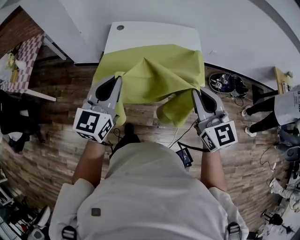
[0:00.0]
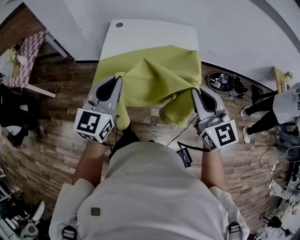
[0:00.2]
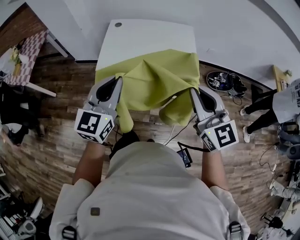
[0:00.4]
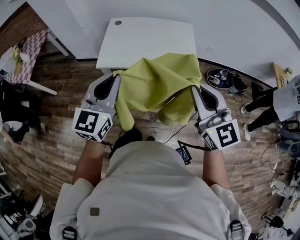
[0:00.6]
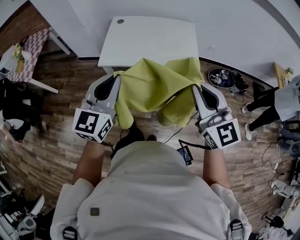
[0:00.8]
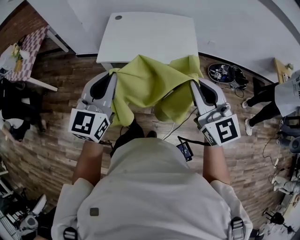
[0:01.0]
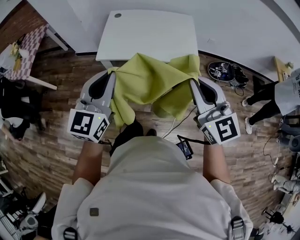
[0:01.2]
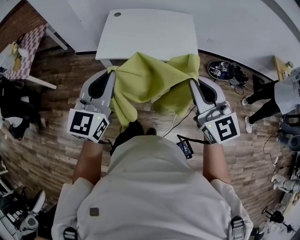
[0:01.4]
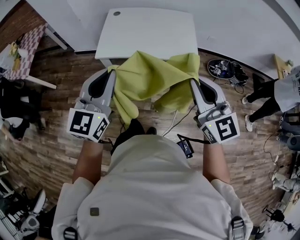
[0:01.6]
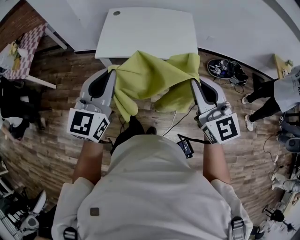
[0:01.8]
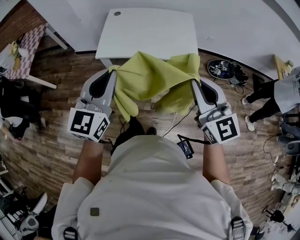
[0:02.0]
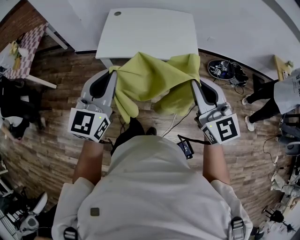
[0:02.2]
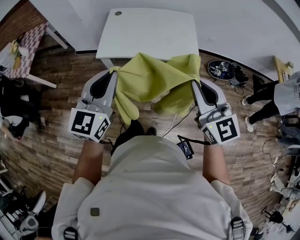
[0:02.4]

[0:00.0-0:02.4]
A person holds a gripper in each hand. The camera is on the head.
0:00.0 to 0:01.2: Both grippers move backward, some 15 cm.
0:01.2 to 0:02.4: The grippers stay close to where they were, moving slightly.

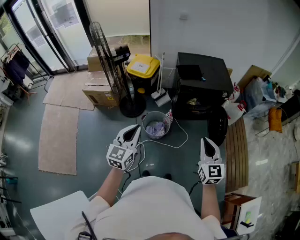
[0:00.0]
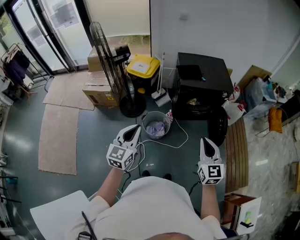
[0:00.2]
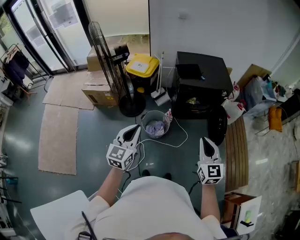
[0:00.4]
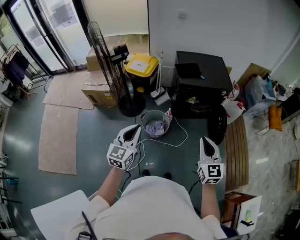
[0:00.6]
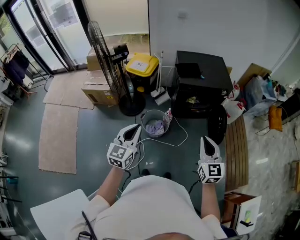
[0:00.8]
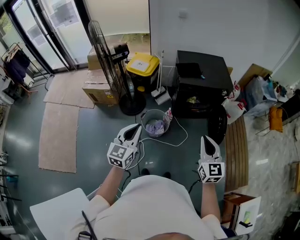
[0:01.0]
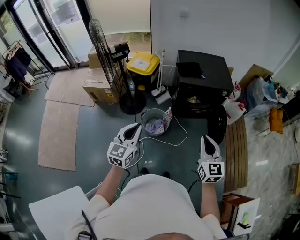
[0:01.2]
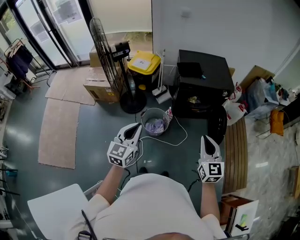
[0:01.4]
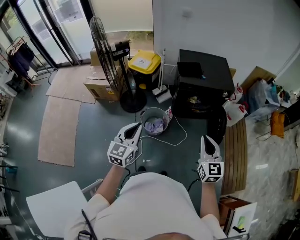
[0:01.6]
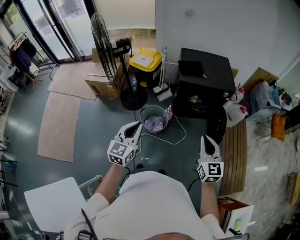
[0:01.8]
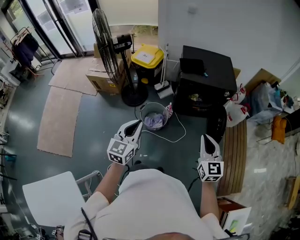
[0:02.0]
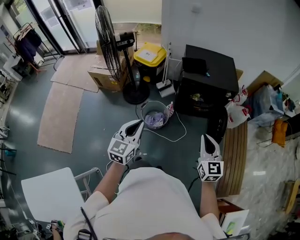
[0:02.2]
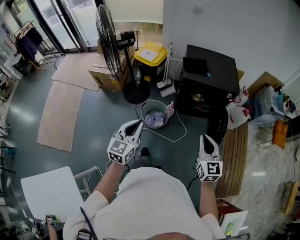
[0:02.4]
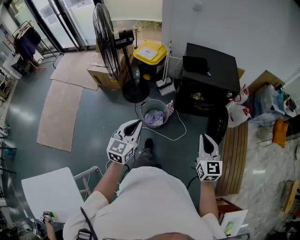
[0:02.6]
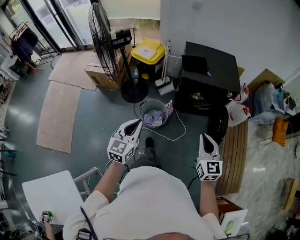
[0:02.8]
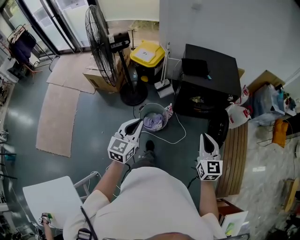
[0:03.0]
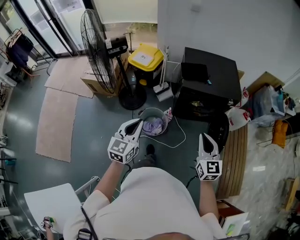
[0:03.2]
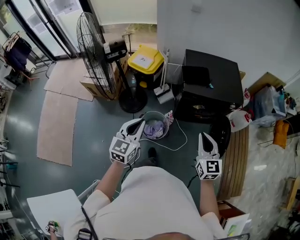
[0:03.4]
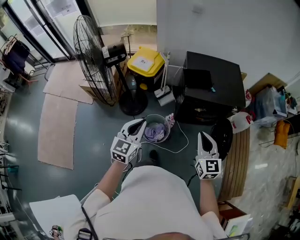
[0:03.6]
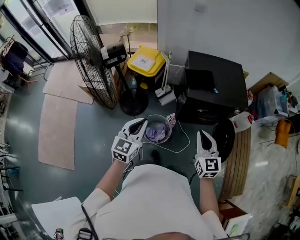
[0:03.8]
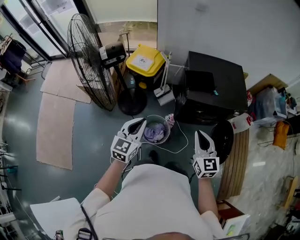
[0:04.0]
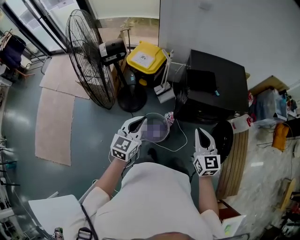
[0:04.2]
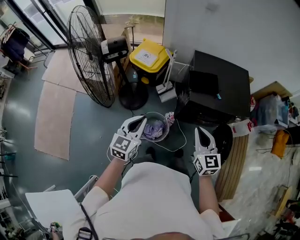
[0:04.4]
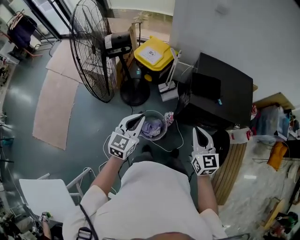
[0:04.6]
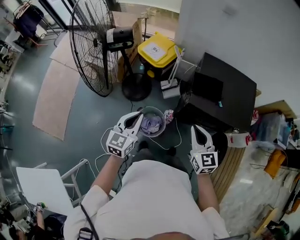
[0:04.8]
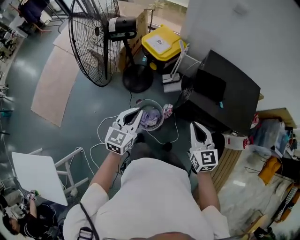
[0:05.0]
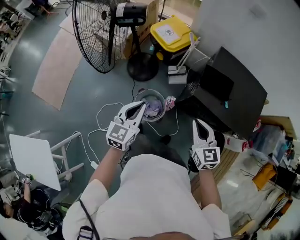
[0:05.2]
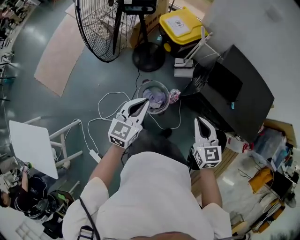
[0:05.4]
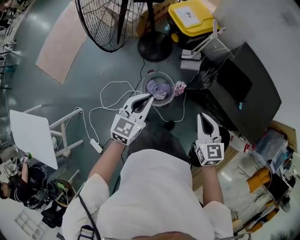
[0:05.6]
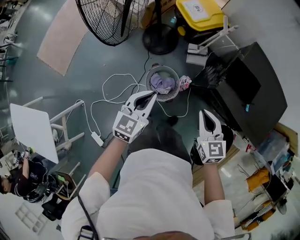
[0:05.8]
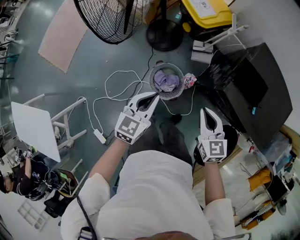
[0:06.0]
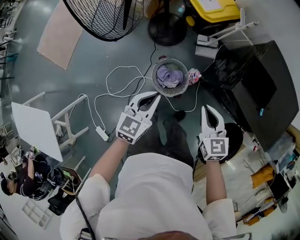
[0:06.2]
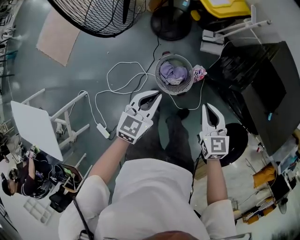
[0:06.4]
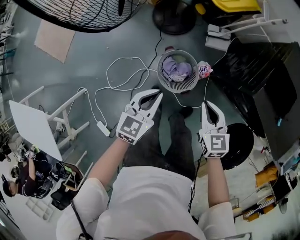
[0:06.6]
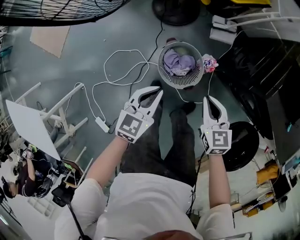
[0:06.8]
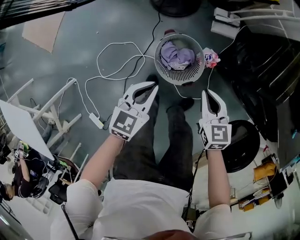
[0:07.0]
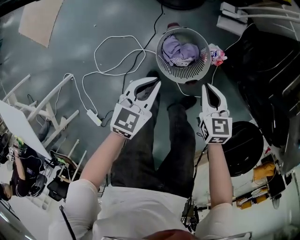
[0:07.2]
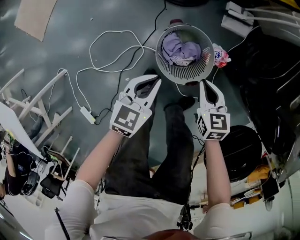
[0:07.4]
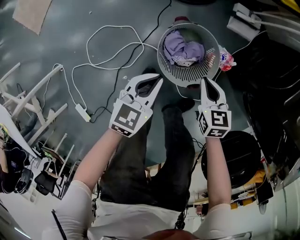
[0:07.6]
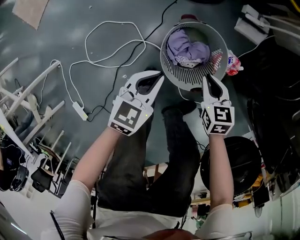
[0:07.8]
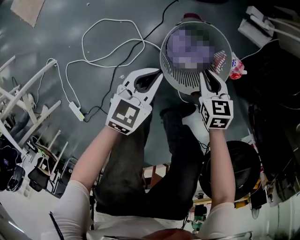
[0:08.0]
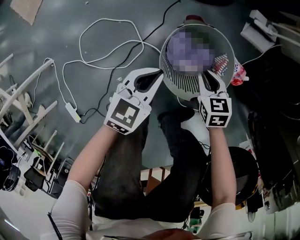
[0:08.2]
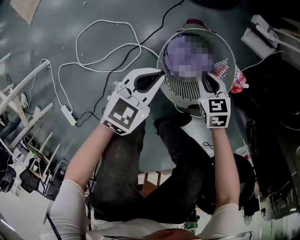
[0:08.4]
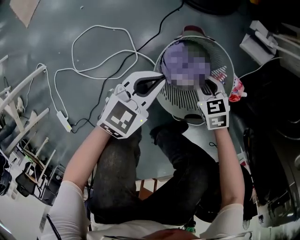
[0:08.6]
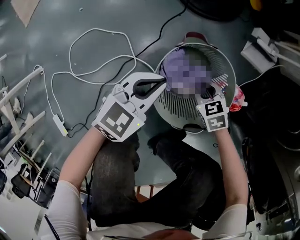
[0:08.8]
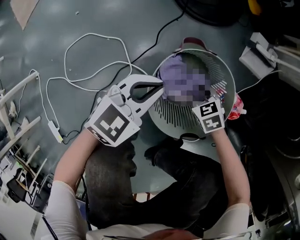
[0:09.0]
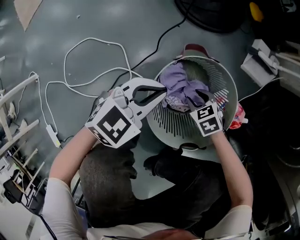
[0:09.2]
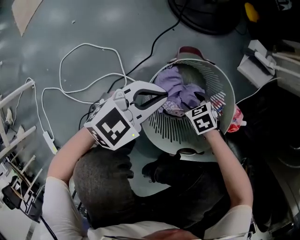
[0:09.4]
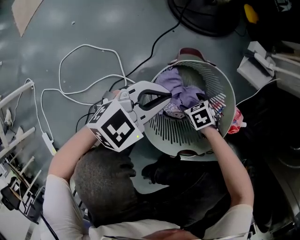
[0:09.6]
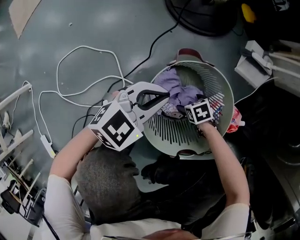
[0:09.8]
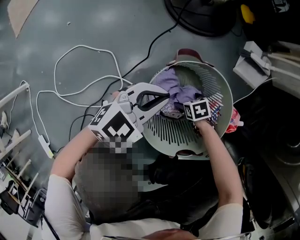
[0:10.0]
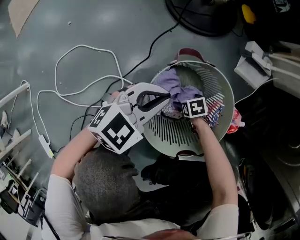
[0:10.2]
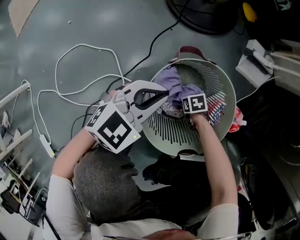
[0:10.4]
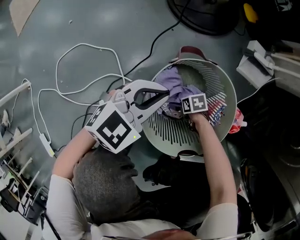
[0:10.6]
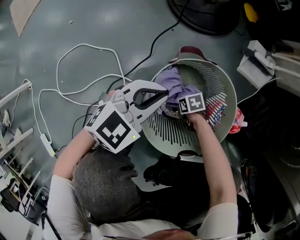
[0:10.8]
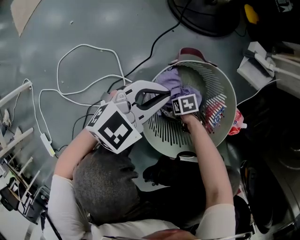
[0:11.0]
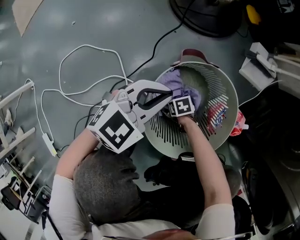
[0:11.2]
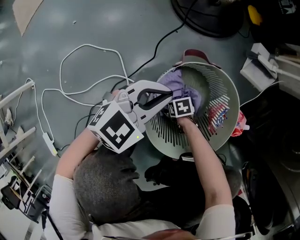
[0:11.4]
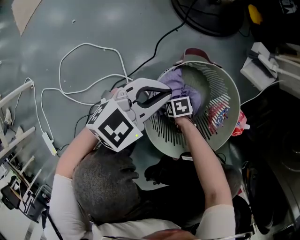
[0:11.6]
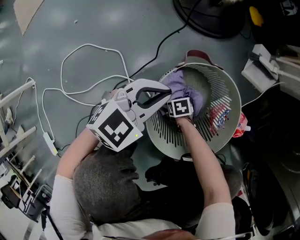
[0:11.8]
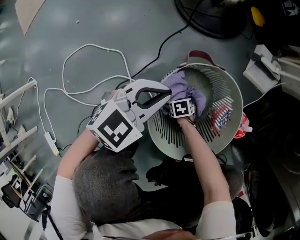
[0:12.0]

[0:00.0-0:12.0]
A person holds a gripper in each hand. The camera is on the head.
0:00.0 to 0:01.6: Both grippers move to the right, some 5 cm.
0:01.6 to 0:03.0: Both grippers travel together forward, roughly 10 cm.
0:03.0 to 0:04.4: Both grippers move forward, some 25 cm.
0:04.4 to 0:06.0: The two grippers go about 15 cm downward. The left gripper turns by about 30 degrees. Meanwhile the right gripper changes its angle by about 40 degrees.
0:06.0 to 0:07.6: The two grippers go roughly 50 cm downward.
0:07.6 to 0:09.0: The right gripper goes some 30 cm downward, and turns by about 40 degrees. The left gripper travels downward by some 20 cm.
0:09.0 to 0:10.4: The right gripper moves downward, some 20 cm, swivels roughly 30 degrees, and opens its fingers.
0:10.4 to 0:12.0: The right gripper moves roughly 10 cm.

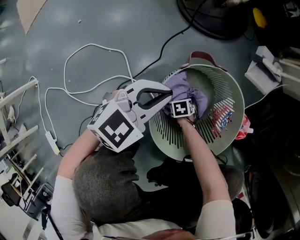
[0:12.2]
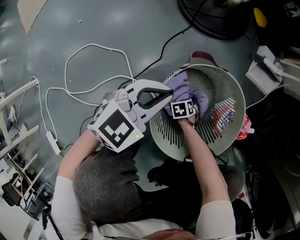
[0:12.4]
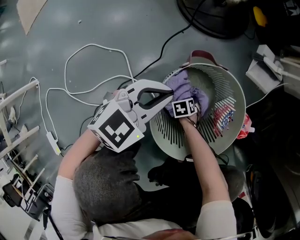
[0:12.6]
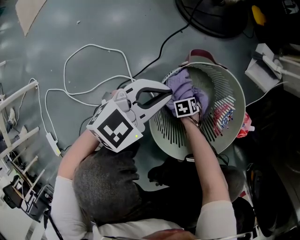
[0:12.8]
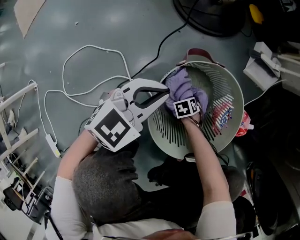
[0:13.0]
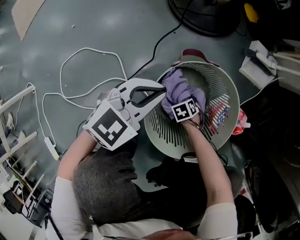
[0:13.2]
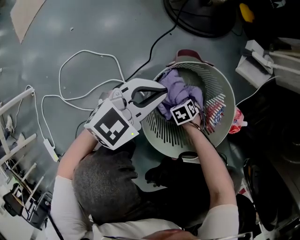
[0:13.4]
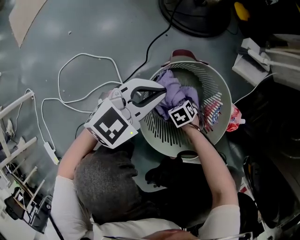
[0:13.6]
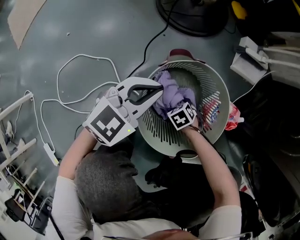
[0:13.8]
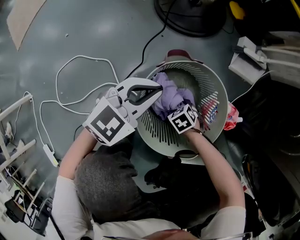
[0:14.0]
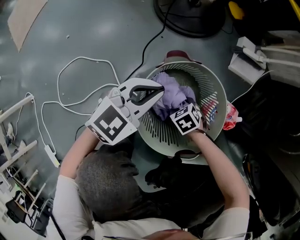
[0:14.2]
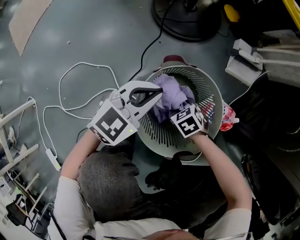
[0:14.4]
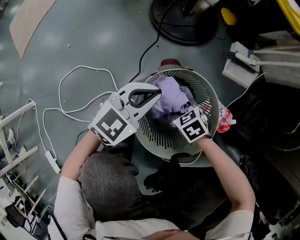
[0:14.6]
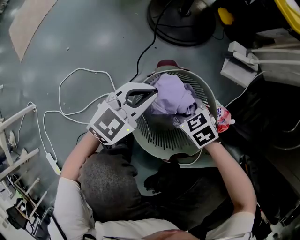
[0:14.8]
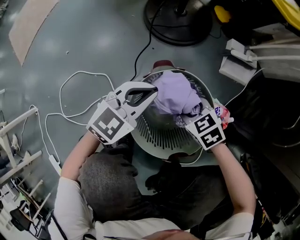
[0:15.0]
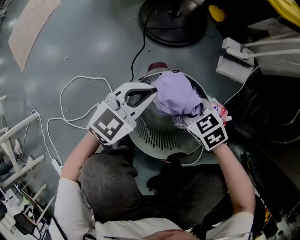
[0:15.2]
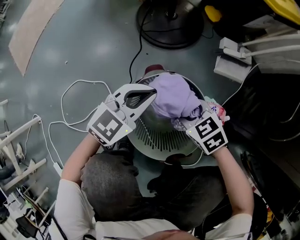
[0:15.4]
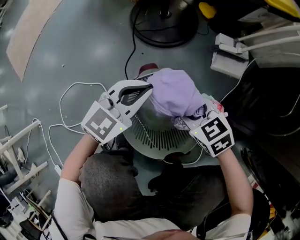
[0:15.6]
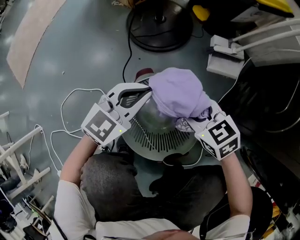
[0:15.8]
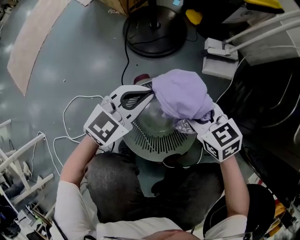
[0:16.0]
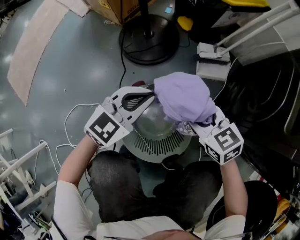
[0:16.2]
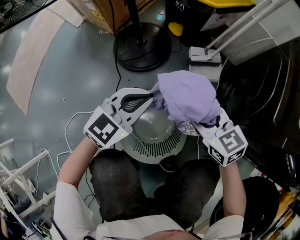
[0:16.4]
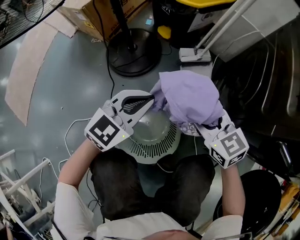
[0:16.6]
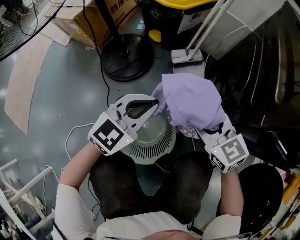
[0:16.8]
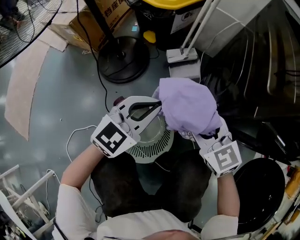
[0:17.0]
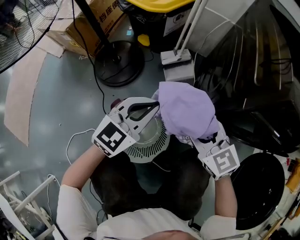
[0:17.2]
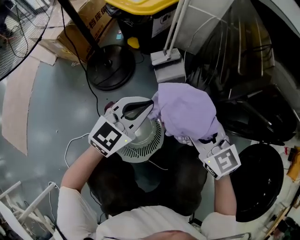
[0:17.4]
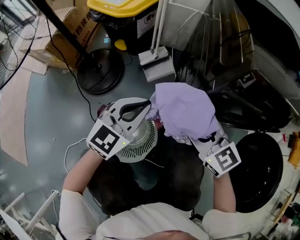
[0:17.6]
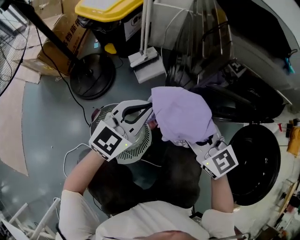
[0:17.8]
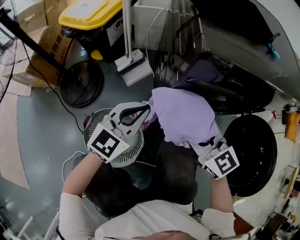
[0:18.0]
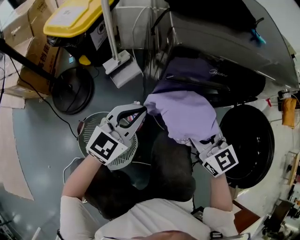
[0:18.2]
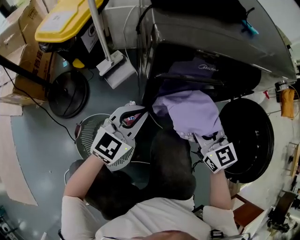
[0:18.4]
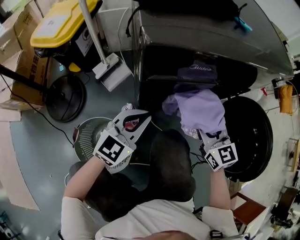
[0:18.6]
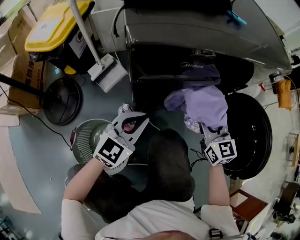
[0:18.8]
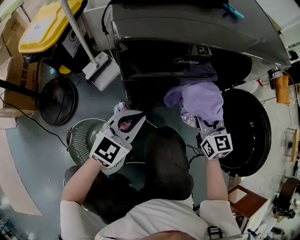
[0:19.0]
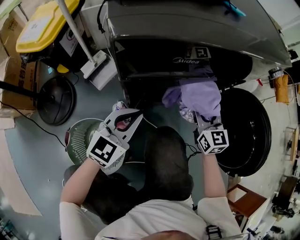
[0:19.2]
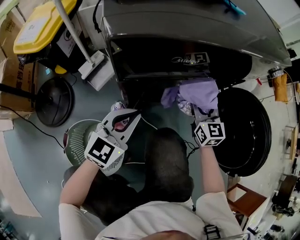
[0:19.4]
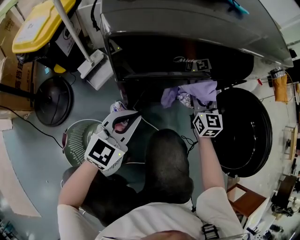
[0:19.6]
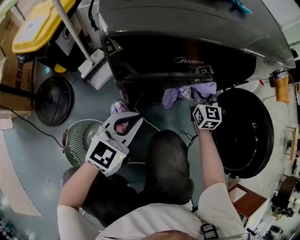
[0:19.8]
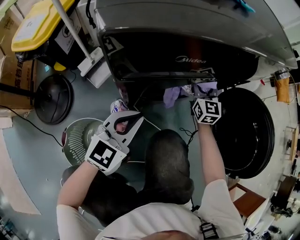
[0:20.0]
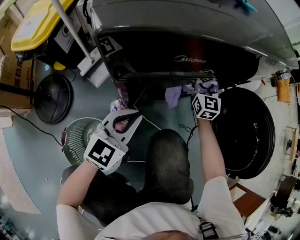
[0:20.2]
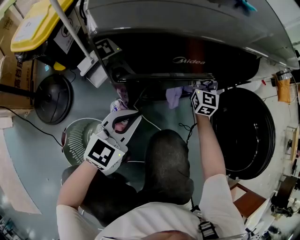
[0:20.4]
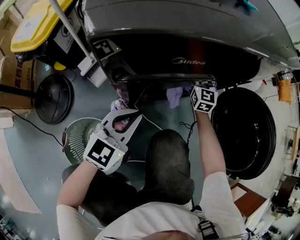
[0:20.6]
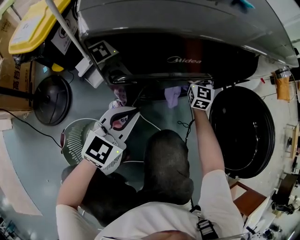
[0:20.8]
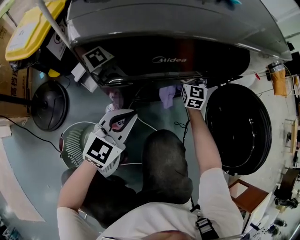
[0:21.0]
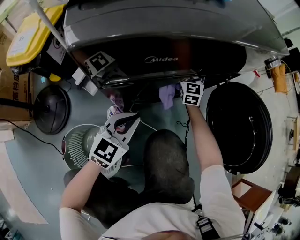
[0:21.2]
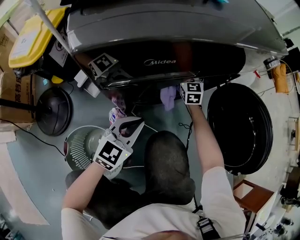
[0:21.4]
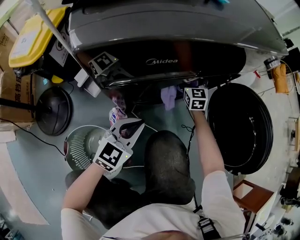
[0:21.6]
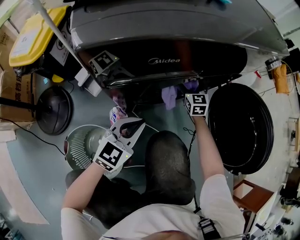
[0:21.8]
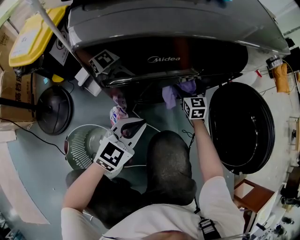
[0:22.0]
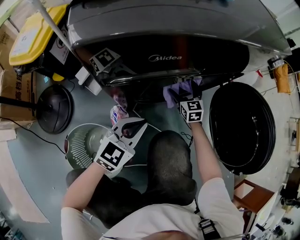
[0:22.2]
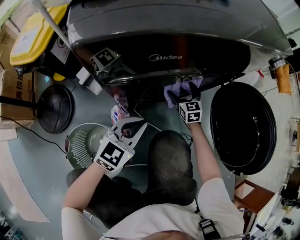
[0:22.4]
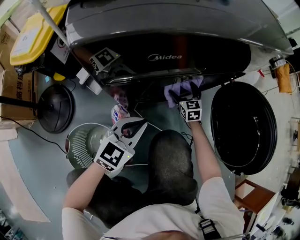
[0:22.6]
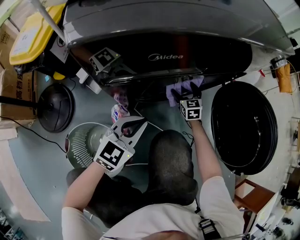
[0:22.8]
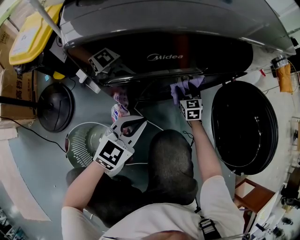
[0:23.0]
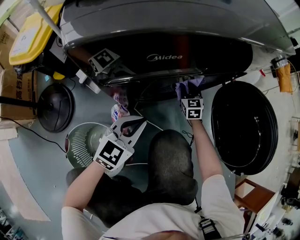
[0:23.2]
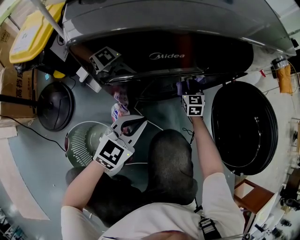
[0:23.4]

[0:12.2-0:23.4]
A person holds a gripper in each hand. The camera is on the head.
0:12.2 to 0:13.8: The right gripper travels upward by about 10 cm, and closes.
0:13.8 to 0:15.4: The right gripper goes roughly 25 cm upward, and rotates roughly 30 degrees. Meanwhile the left gripper moves some 5 cm.
0:15.4 to 0:17.0: The grippers both shift upward by about 20 cm. The left gripper turns by some 20 degrees. The right gripper turns by approximately 40 degrees.
0:17.0 to 0:18.6: The left gripper moves roughly 20 cm, and turns by roughly 30 degrees. Meanwhile the right gripper moves roughly 30 cm, and changes its angle by roughly 50 degrees.
0:18.6 to 0:20.2: The right gripper travels forward by about 20 cm, and rotates some 20 degrees.
0:20.2 to 0:21.8: The right gripper heads downward, covering approximately 10 cm, and opens its fingers.
0:21.8 to 0:23.4: The right gripper closes its fingers.
